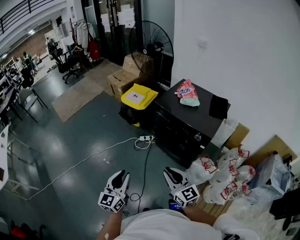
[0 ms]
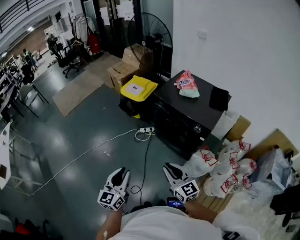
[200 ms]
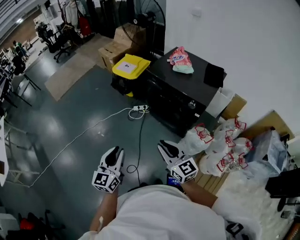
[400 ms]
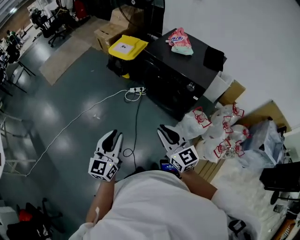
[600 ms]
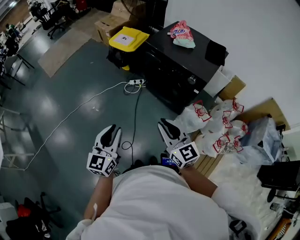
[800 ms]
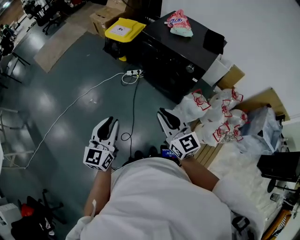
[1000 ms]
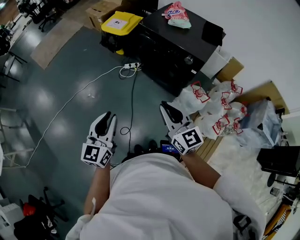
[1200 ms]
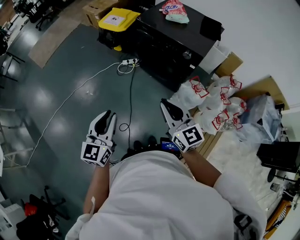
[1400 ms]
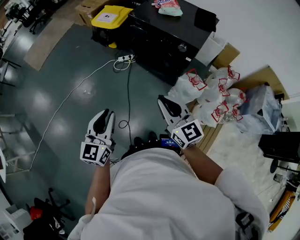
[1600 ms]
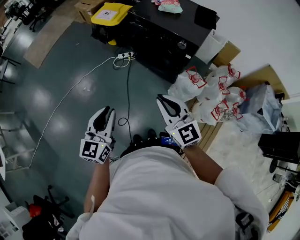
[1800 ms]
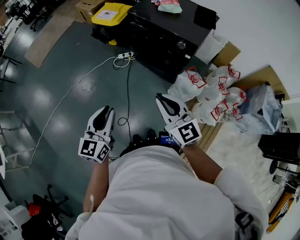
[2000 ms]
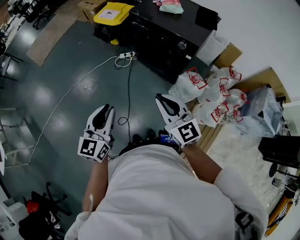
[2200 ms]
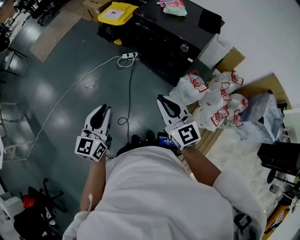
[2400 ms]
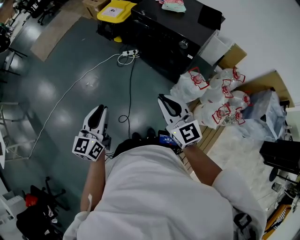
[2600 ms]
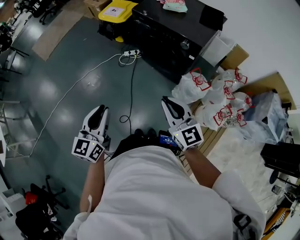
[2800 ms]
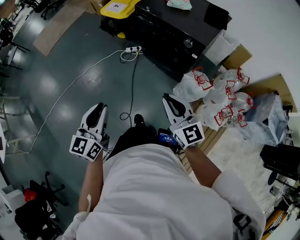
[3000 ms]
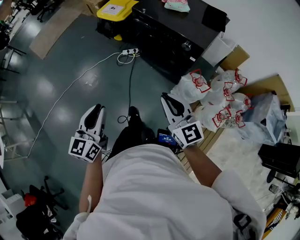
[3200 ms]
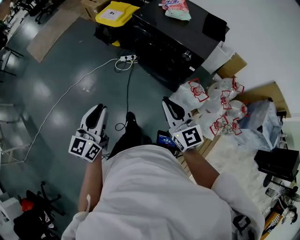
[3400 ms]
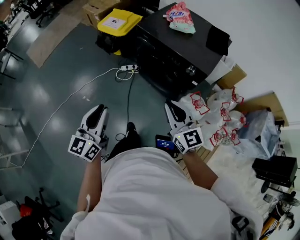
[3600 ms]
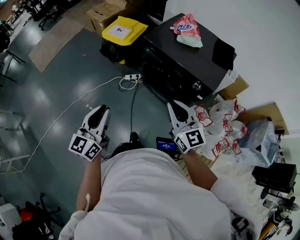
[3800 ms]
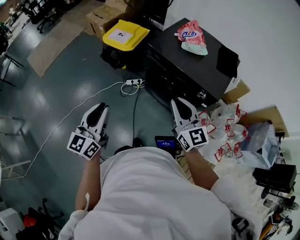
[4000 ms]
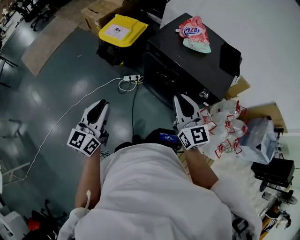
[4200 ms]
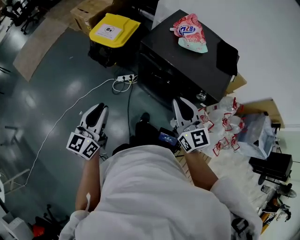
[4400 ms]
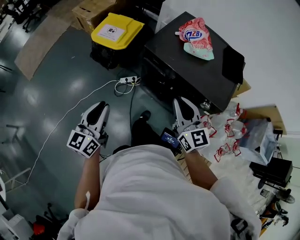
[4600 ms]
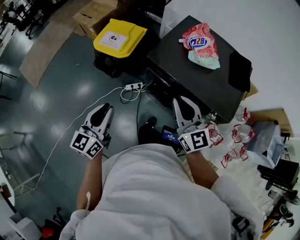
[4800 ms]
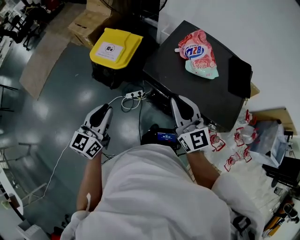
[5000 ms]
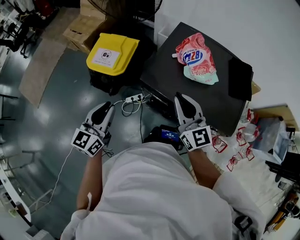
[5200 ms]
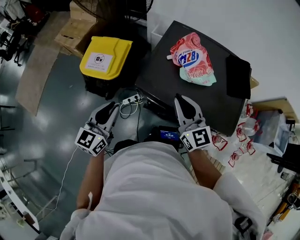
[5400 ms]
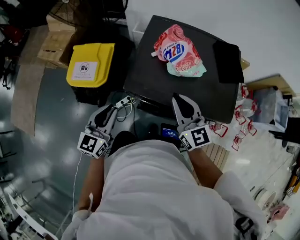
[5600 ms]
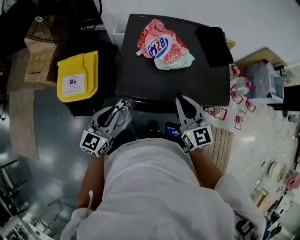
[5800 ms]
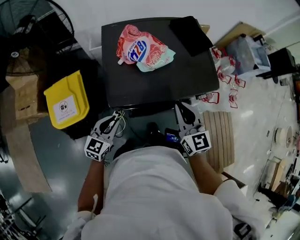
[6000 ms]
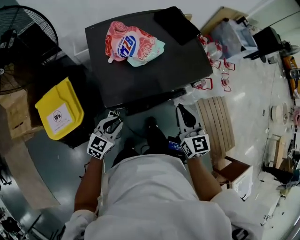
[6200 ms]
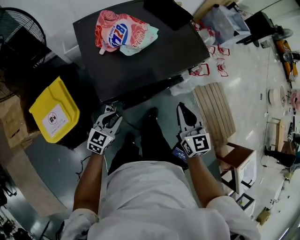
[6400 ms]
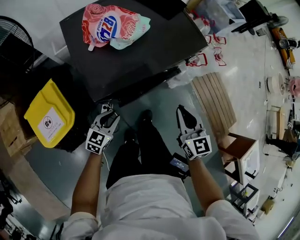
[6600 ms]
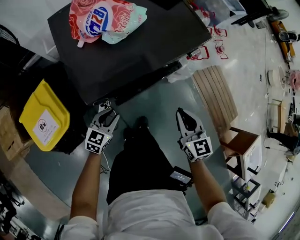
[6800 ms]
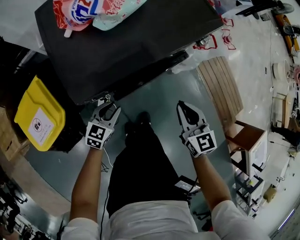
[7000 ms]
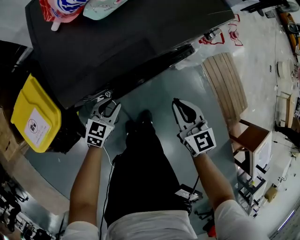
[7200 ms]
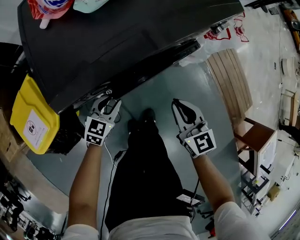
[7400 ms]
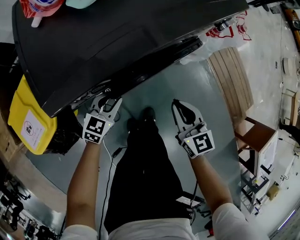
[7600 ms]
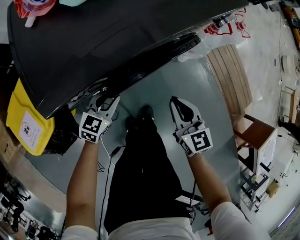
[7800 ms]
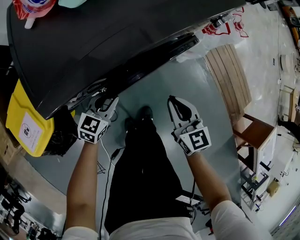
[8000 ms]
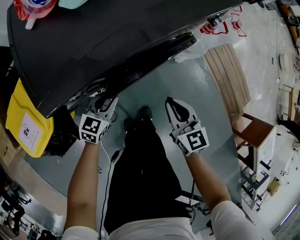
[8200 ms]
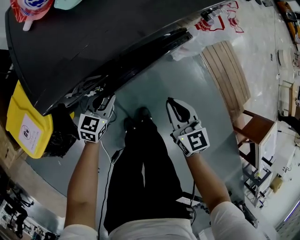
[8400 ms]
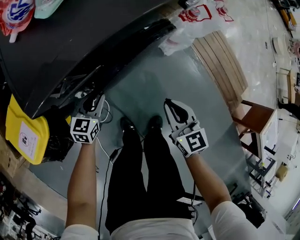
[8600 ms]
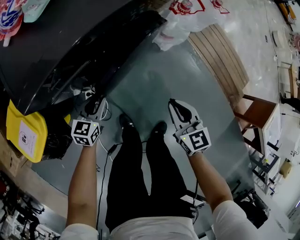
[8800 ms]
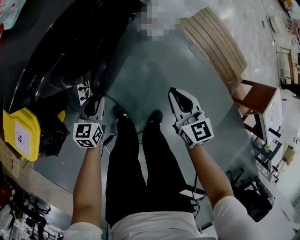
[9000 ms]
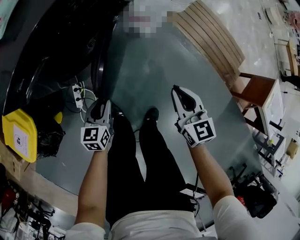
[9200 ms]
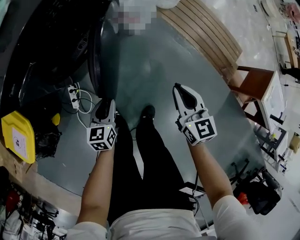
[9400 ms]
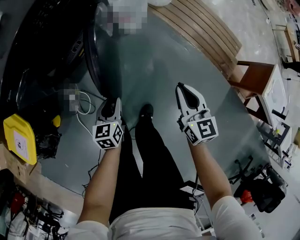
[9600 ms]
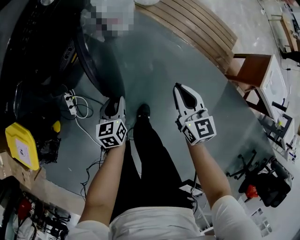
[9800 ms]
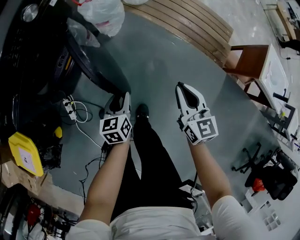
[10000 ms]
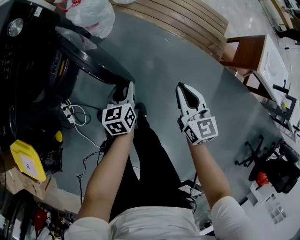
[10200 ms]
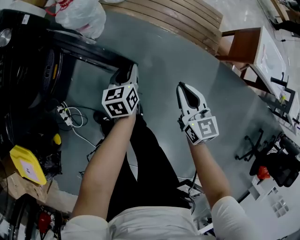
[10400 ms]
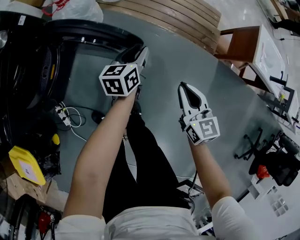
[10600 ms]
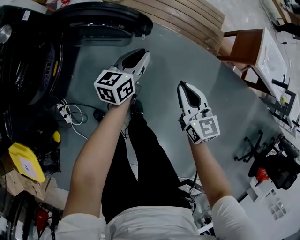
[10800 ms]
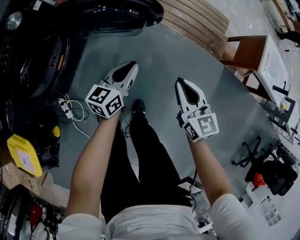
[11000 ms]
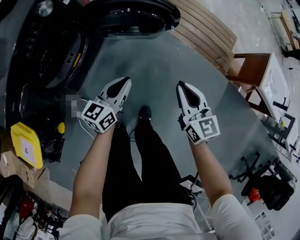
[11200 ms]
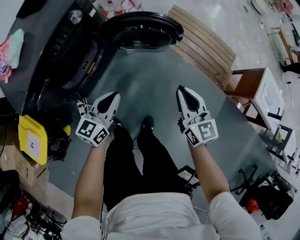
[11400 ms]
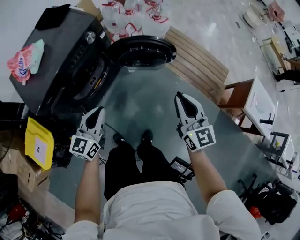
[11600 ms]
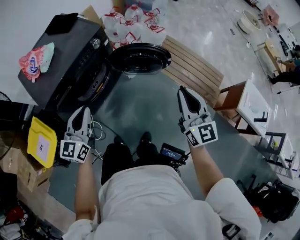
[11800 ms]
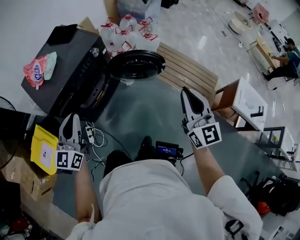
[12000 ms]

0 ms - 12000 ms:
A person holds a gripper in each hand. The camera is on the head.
0 ms - 1600 ms: The grippers both shift backward by about 5 cm.
1600 ms - 3000 ms: The right gripper ends up about 5 cm from where it was.
3000 ms - 4400 ms: The two grippers go approximately 35 cm forward.
4400 ms - 6000 ms: The right gripper ends up some 20 cm from where it was, and turns by roughly 50 degrees, while the left gripper changes place by roughly 40 cm, and changes its angle by some 60 degrees.
6000 ms - 7600 ms: The two grippers go about 30 cm downward. The right gripper rotates some 20 degrees. The left gripper swivels about 30 degrees.
7600 ms - 9000 ms: The two grippers go roughly 15 cm to the right and backward.
9000 ms - 10400 ms: Both grippers travel together to the right, approximately 40 cm. The right gripper rotates approximately 30 degrees.
10400 ms - 12000 ms: The right gripper heads upward, covering some 40 cm, and tilts its fingers approximately 30 degrees upward. Meanwhile the left gripper goes approximately 60 cm upward, to the left and backward, and points its fingers approximately 40 degrees further upward.

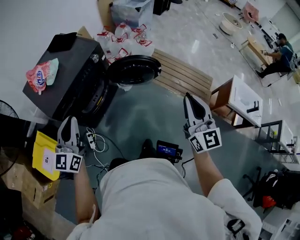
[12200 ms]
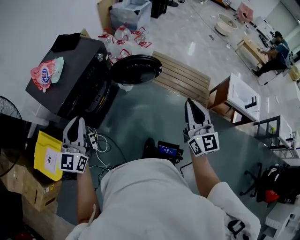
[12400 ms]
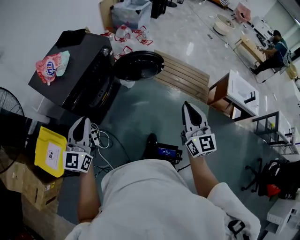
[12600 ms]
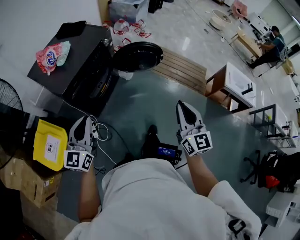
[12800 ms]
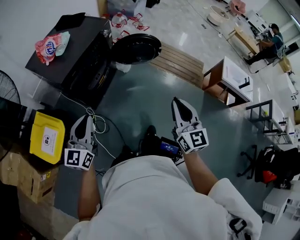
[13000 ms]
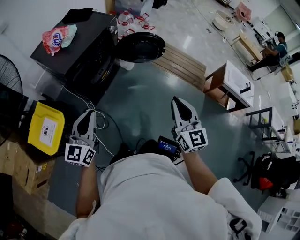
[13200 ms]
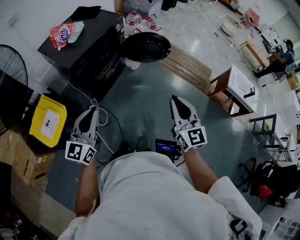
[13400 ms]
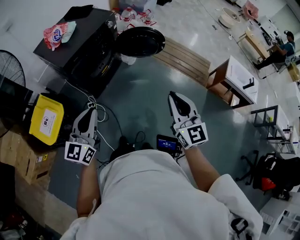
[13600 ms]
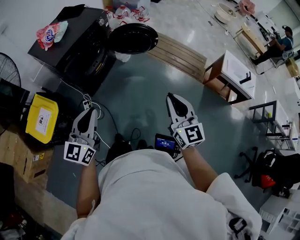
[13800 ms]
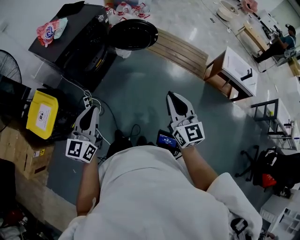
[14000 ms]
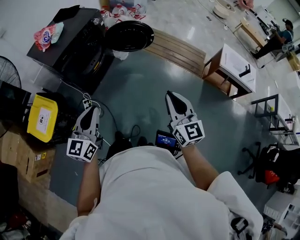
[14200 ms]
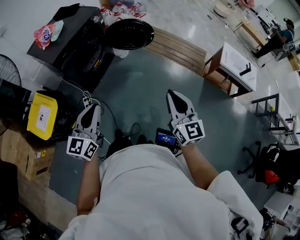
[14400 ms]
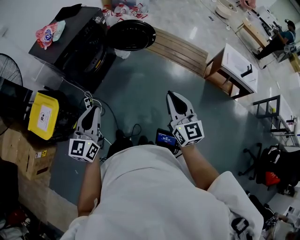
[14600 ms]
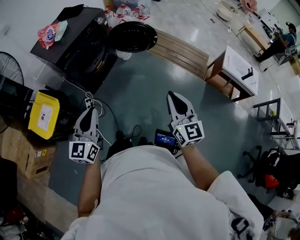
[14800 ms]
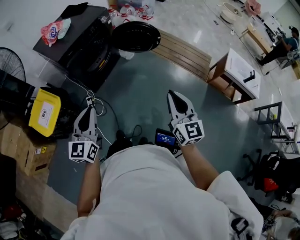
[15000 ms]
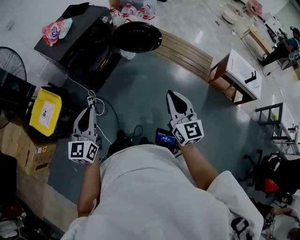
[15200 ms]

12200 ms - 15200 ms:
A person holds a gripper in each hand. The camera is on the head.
12200 ms - 13800 ms: Both grippers move backward, roughly 30 cm.

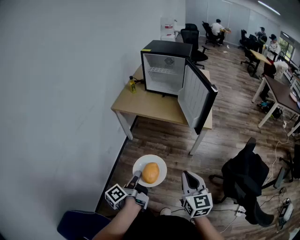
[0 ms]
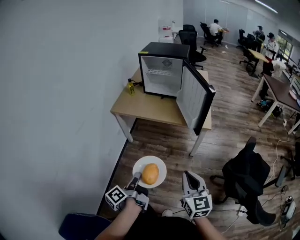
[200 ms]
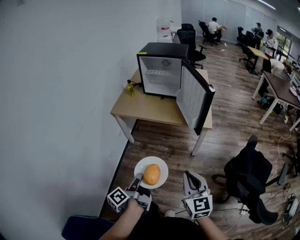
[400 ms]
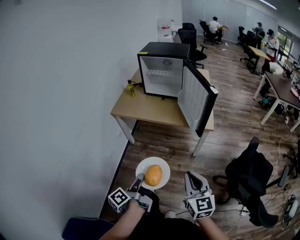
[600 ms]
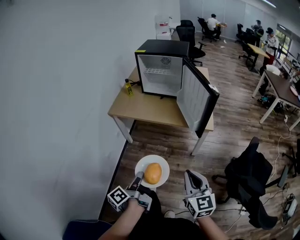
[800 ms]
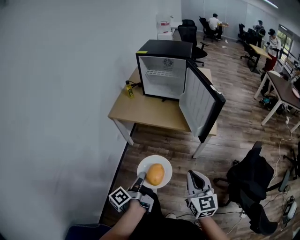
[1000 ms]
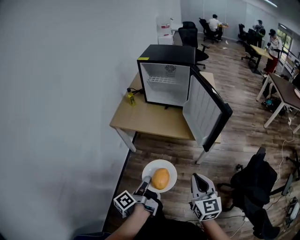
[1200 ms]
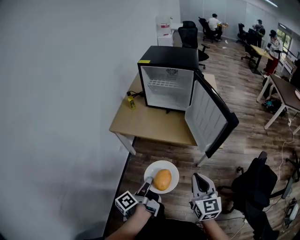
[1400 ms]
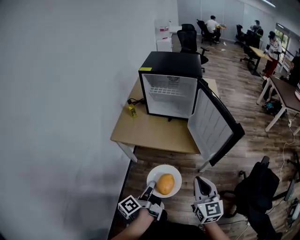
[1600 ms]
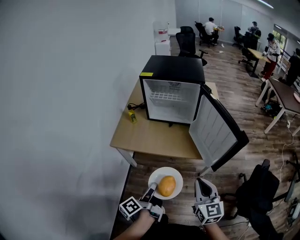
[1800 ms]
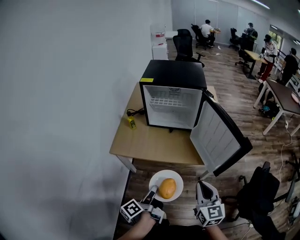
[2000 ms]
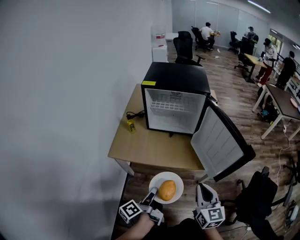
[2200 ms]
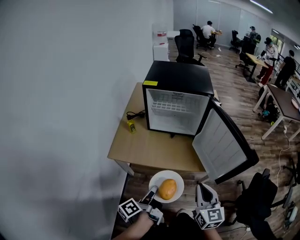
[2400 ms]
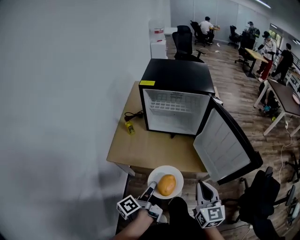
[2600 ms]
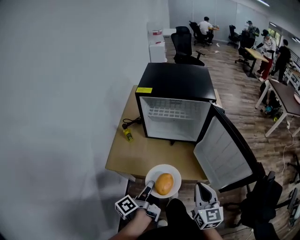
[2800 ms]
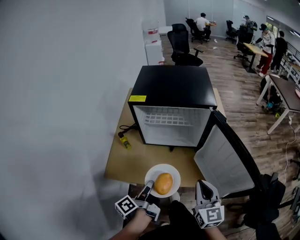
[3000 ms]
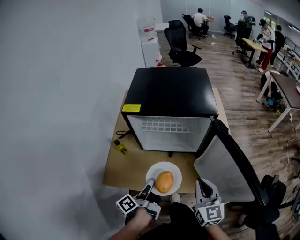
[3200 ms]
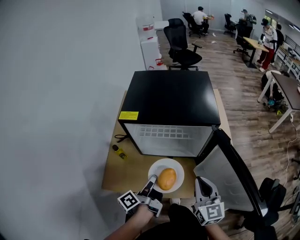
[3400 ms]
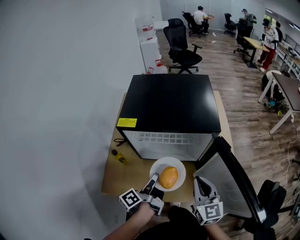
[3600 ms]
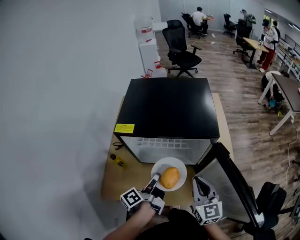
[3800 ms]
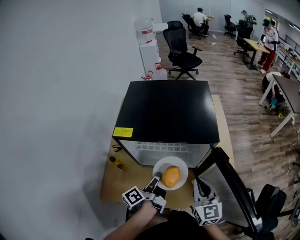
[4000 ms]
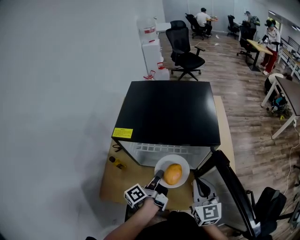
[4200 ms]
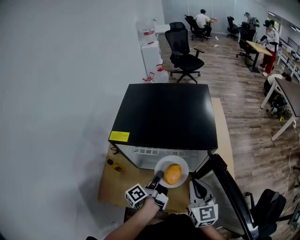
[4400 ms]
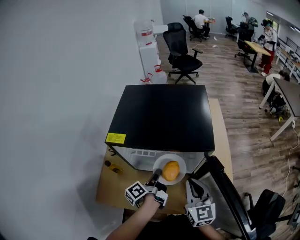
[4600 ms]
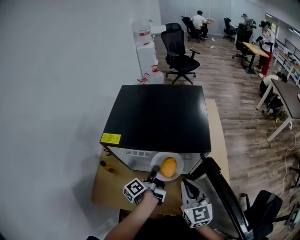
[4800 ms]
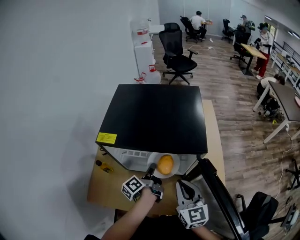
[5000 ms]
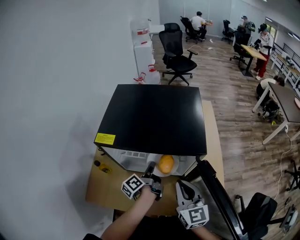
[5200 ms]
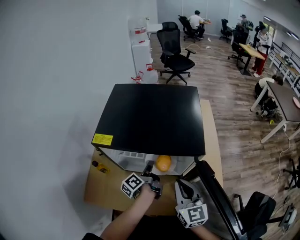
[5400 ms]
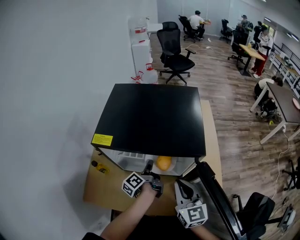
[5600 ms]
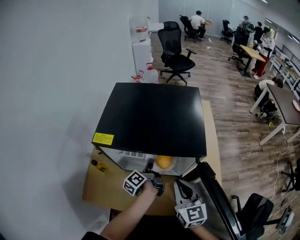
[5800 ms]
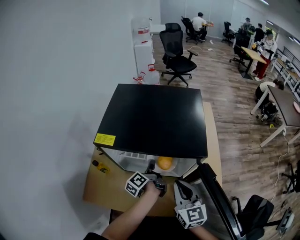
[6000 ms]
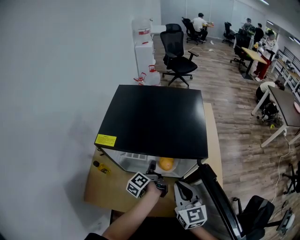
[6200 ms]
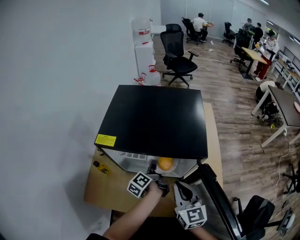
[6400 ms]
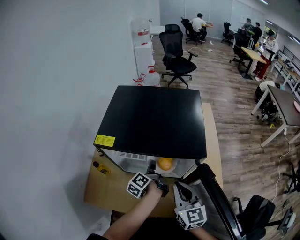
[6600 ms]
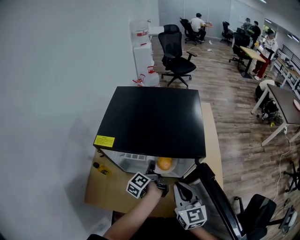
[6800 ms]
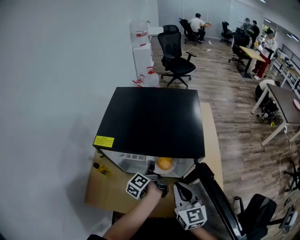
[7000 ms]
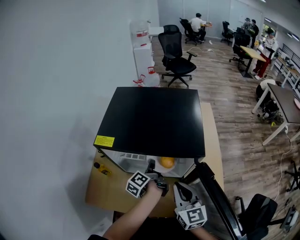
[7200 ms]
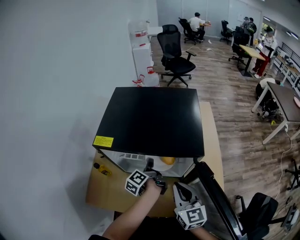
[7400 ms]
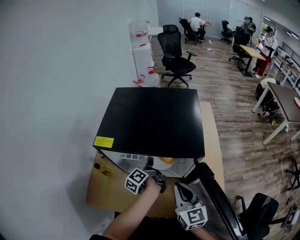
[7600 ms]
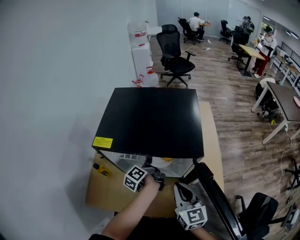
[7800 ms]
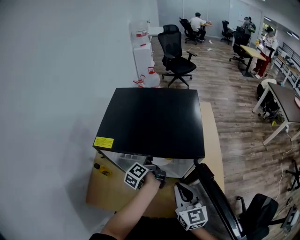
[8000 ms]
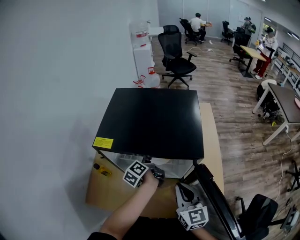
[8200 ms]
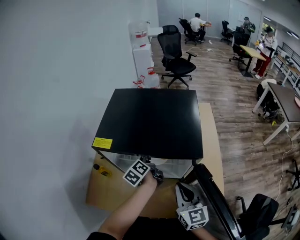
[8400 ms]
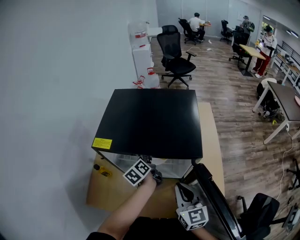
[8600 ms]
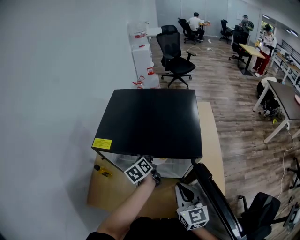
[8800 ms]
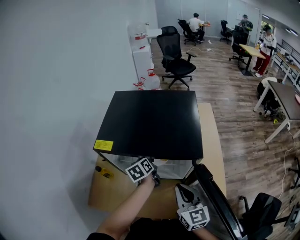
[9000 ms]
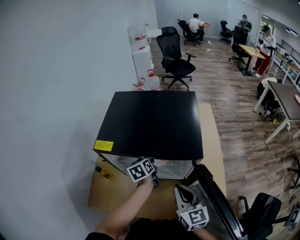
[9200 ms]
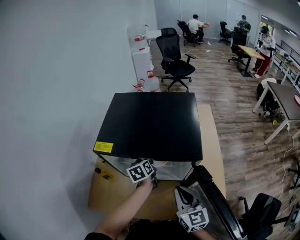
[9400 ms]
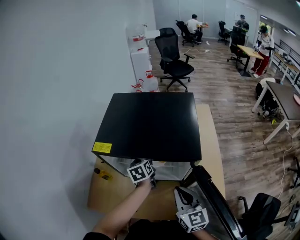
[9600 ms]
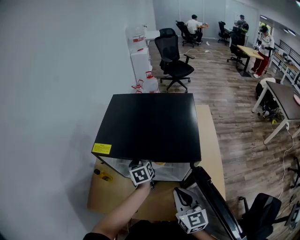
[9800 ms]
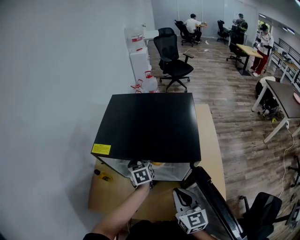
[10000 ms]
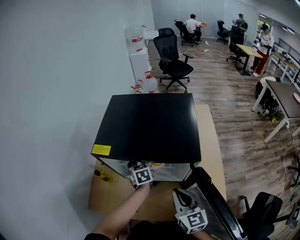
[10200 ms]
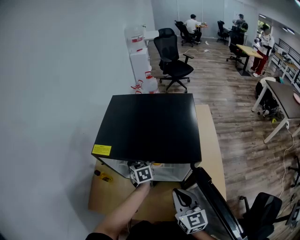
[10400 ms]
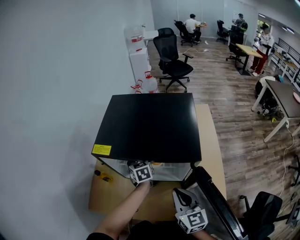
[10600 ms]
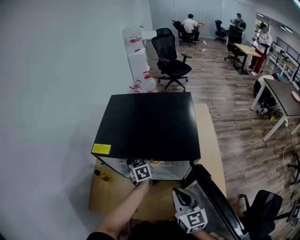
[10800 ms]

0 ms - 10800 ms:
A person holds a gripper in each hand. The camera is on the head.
0 ms - 1600 ms: Both grippers travel together forward, some 25 cm.
1600 ms - 3000 ms: Both grippers move forward, approximately 25 cm.
3000 ms - 4600 ms: Both grippers travel together forward, about 25 cm.
4600 ms - 6200 ms: The left gripper goes some 5 cm forward.
6200 ms - 7800 ms: The grippers move only a little.
7800 ms - 9200 ms: The left gripper rotates around the line of its fingers by approximately 50 degrees, clockwise from behind, and opens.
9200 ms - 10800 ms: The left gripper rotates about 30 degrees.
